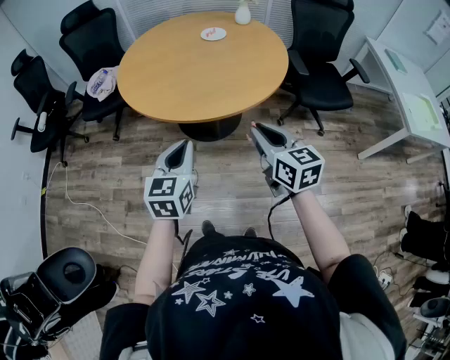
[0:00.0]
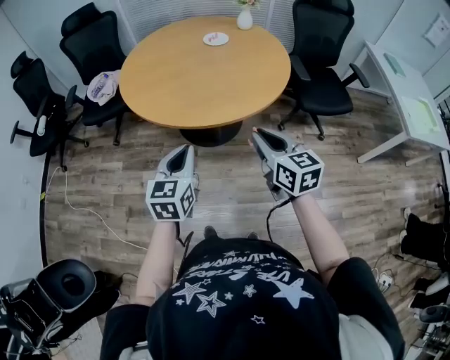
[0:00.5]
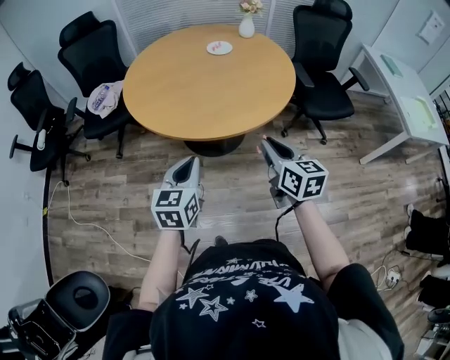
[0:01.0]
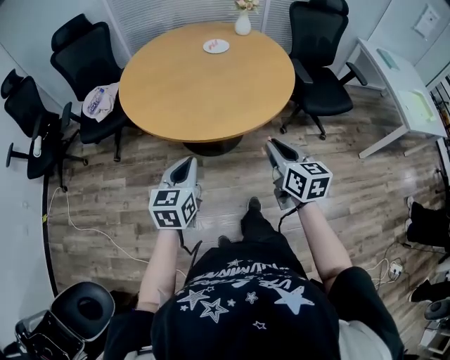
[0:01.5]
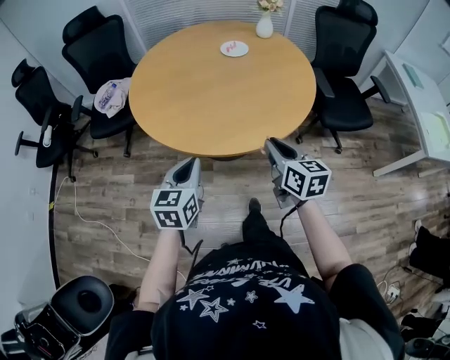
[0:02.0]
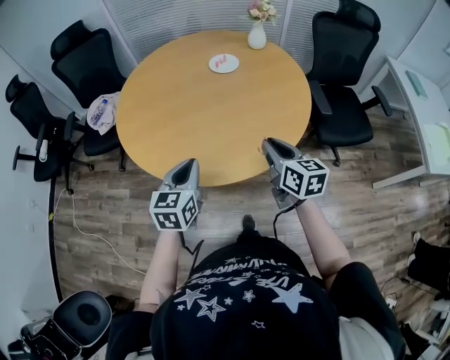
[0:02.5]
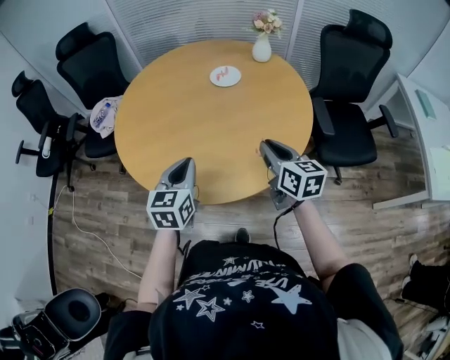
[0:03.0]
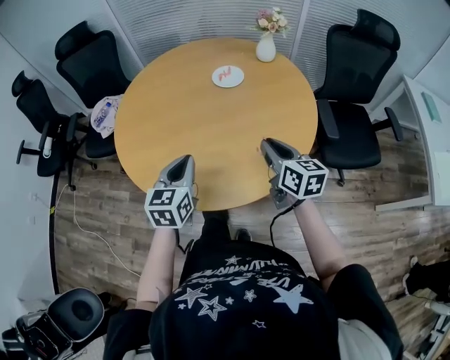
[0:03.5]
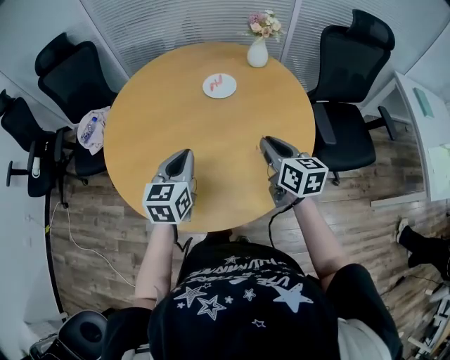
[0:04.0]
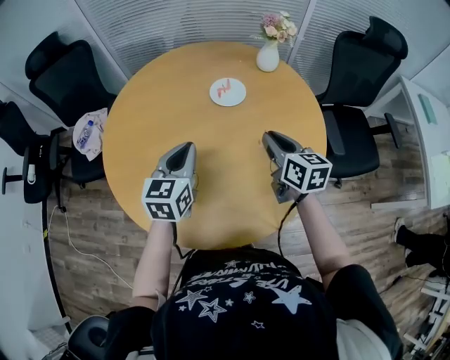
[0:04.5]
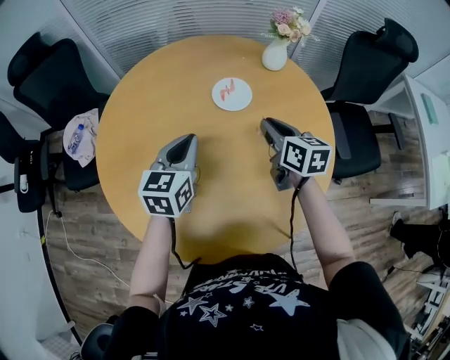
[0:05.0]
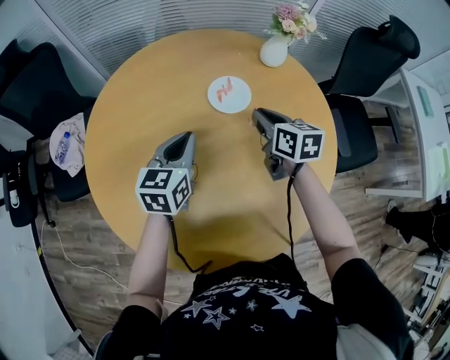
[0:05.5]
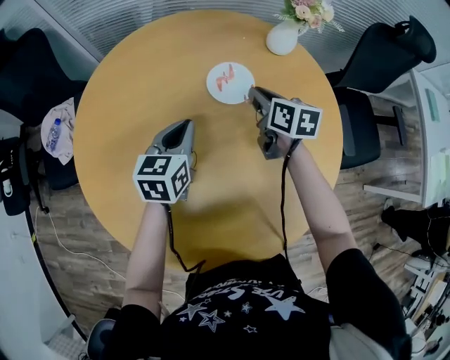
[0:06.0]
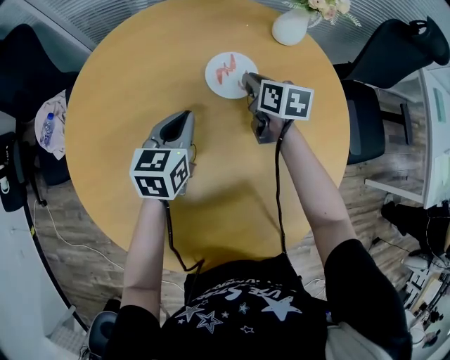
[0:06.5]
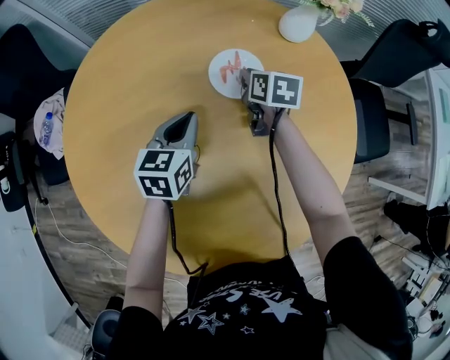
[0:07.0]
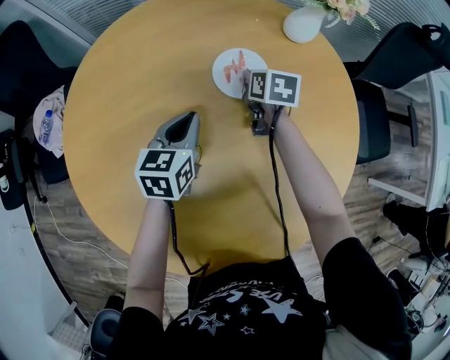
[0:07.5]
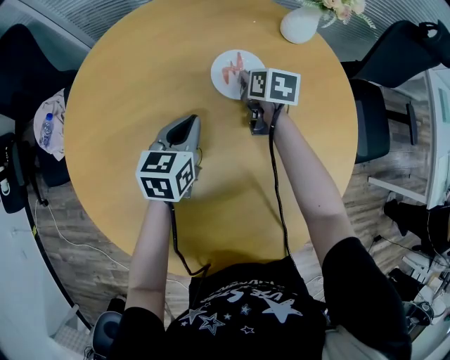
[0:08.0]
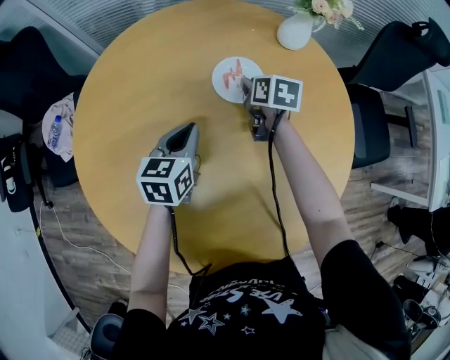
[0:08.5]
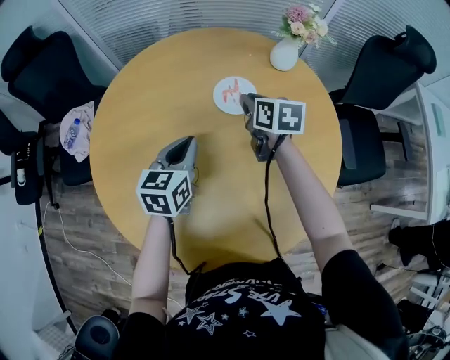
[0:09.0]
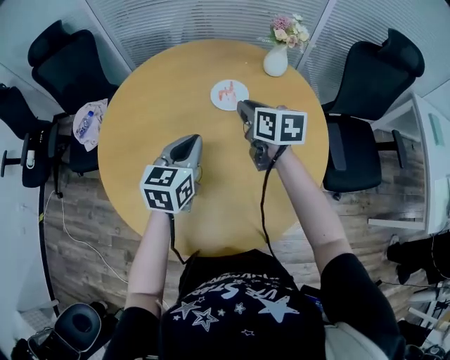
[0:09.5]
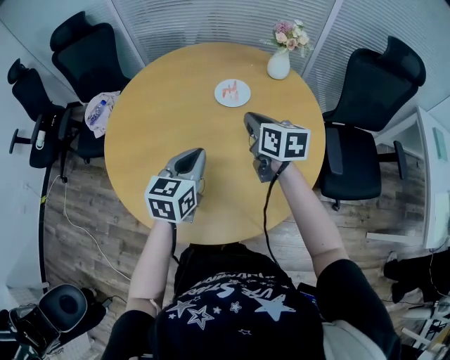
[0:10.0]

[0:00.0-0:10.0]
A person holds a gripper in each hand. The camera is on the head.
0:00.0 to 0:02.0: The left gripper goes some 15 cm forward, to the left and downward, while the right gripper is displaced forward and downward by roughly 15 cm.
0:02.0 to 0:04.0: The grippers both shift forward by approximately 30 cm.
0:04.0 to 0:06.0: The right gripper is displaced forward by about 30 cm; the left gripper shifts some 25 cm forward and downward.
0:06.0 to 0:08.0: The left gripper moves downward, roughly 5 cm. The right gripper shifts roughly 15 cm downward and forward.
0:08.0 to 0:10.0: The two grippers go some 30 cm backward and upward. The right gripper rotates about 30 degrees.

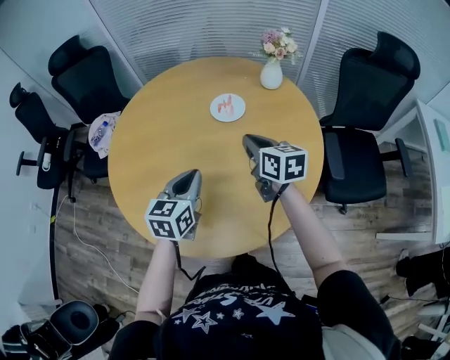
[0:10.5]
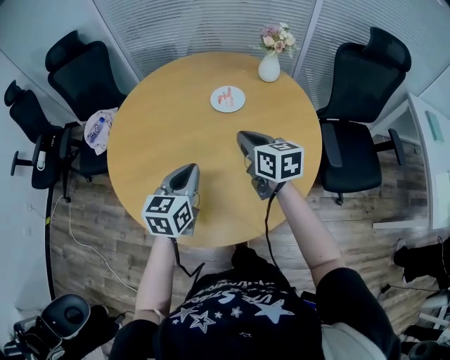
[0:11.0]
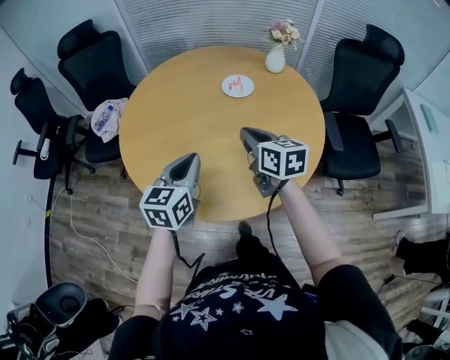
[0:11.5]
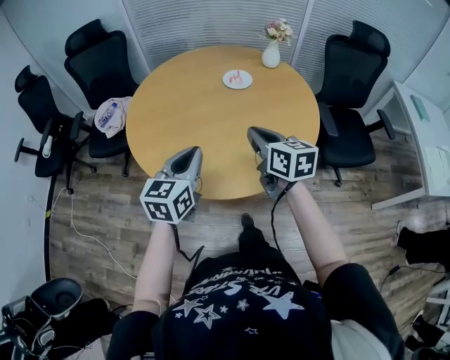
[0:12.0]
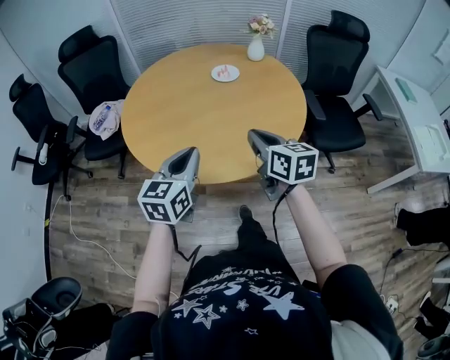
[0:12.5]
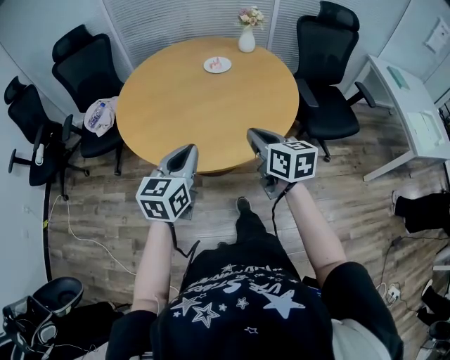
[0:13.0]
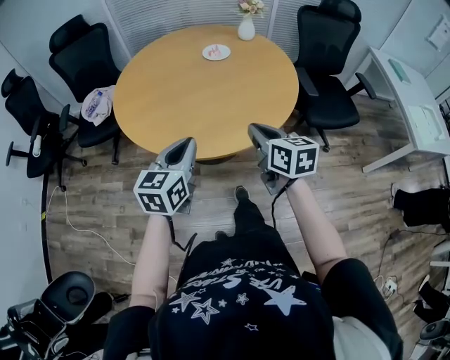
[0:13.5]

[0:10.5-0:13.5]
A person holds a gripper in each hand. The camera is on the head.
0:10.5 to 0:12.0: Both grippers travel together backward and to the left, some 25 cm.
0:12.0 to 0:13.5: The two grippers go some 15 cm backward.

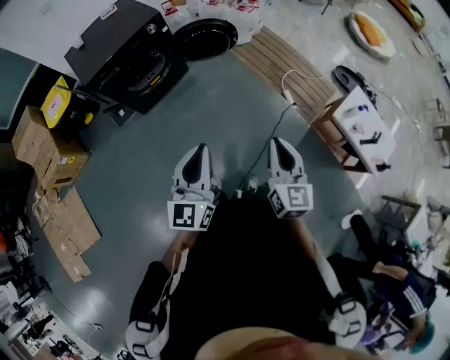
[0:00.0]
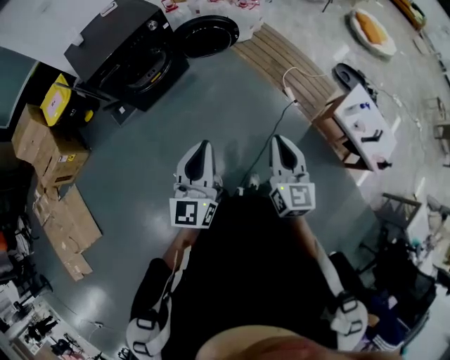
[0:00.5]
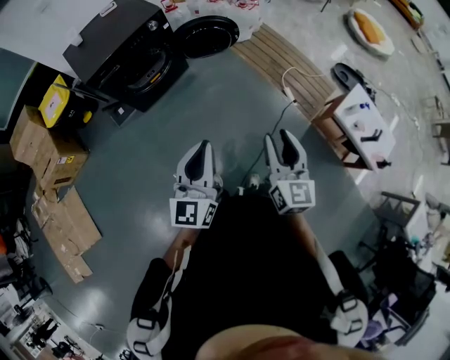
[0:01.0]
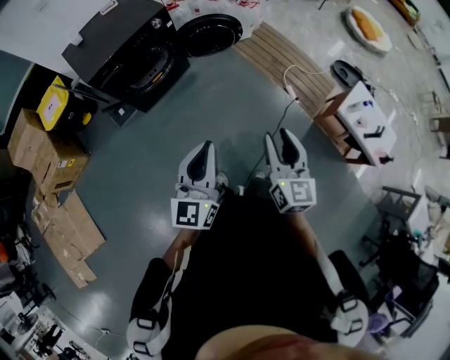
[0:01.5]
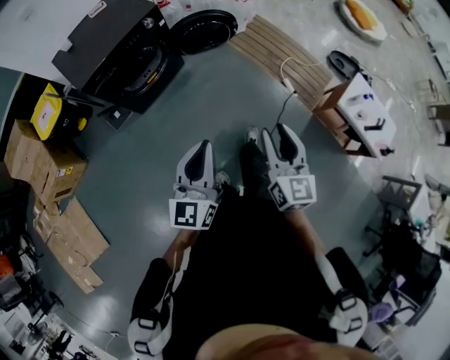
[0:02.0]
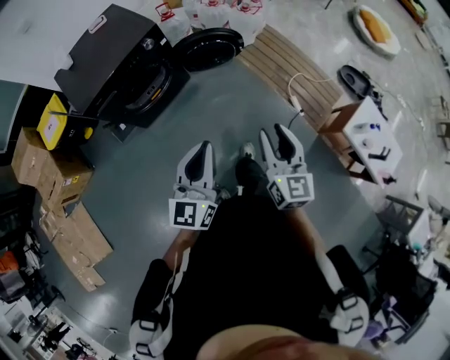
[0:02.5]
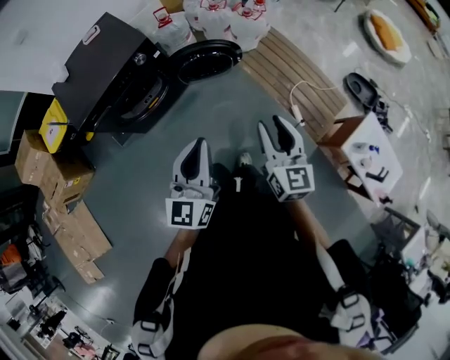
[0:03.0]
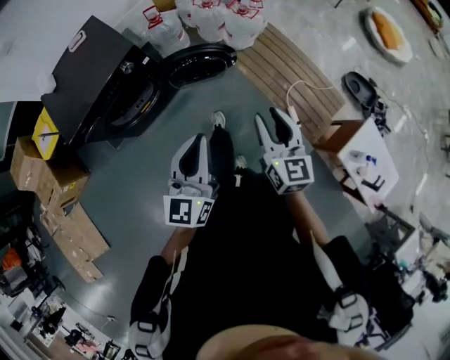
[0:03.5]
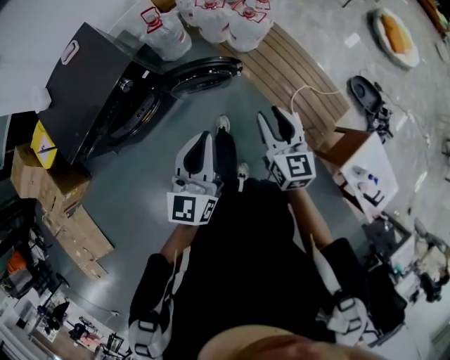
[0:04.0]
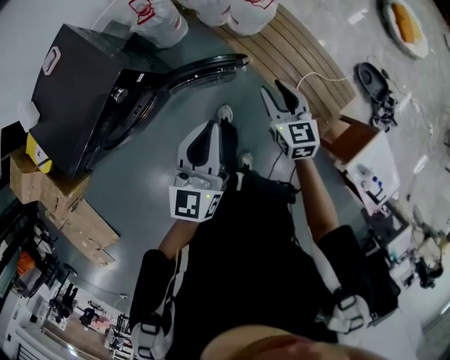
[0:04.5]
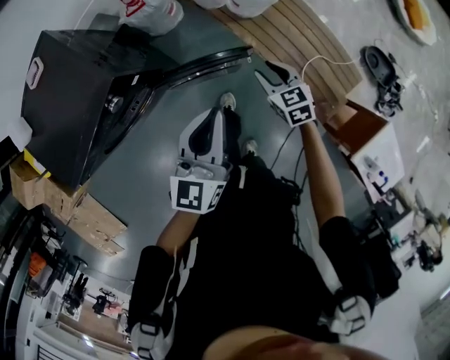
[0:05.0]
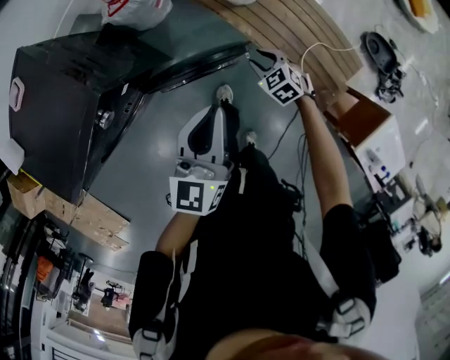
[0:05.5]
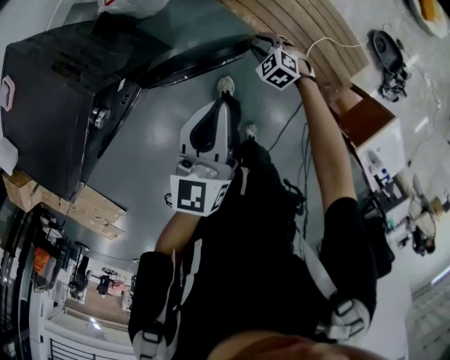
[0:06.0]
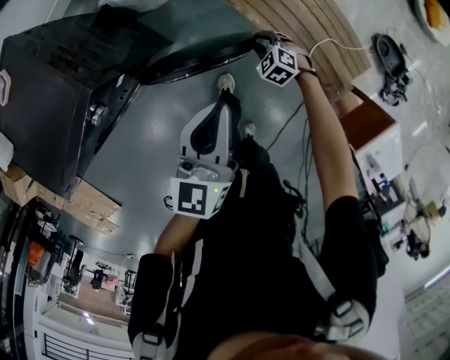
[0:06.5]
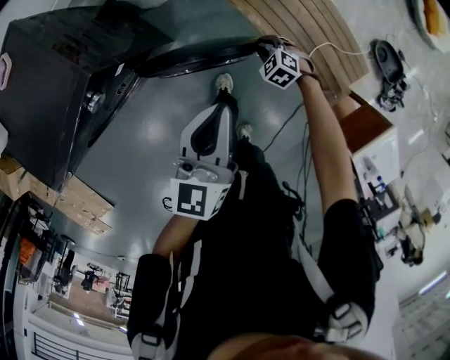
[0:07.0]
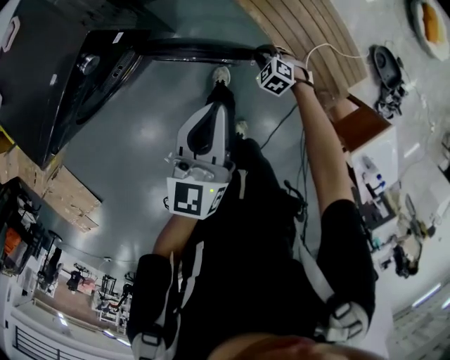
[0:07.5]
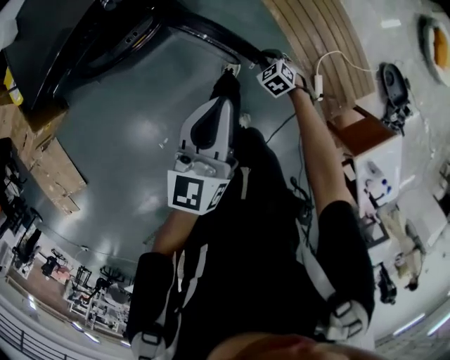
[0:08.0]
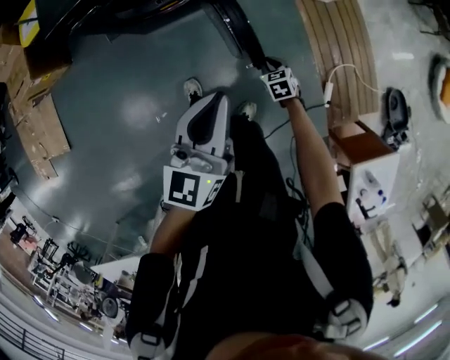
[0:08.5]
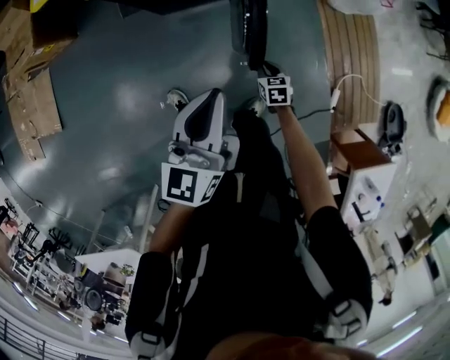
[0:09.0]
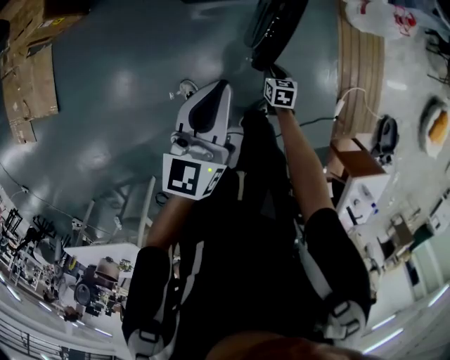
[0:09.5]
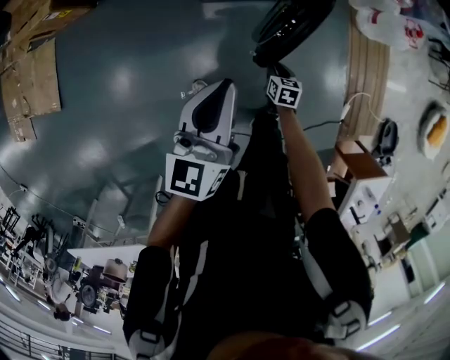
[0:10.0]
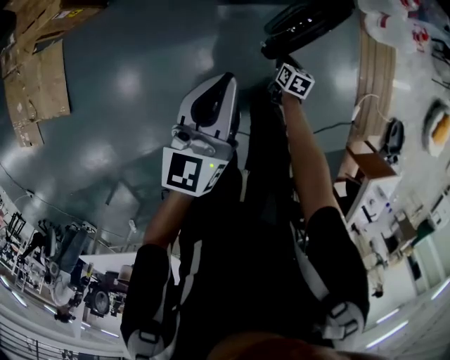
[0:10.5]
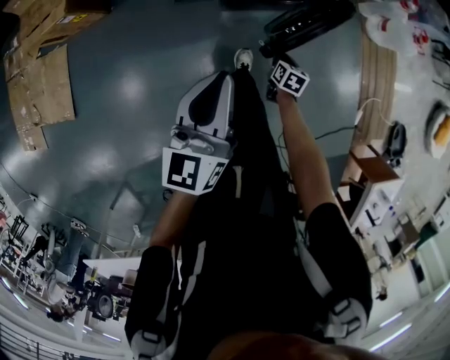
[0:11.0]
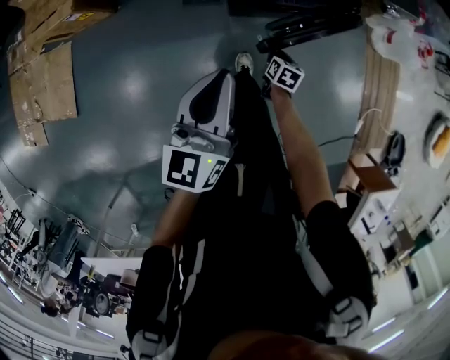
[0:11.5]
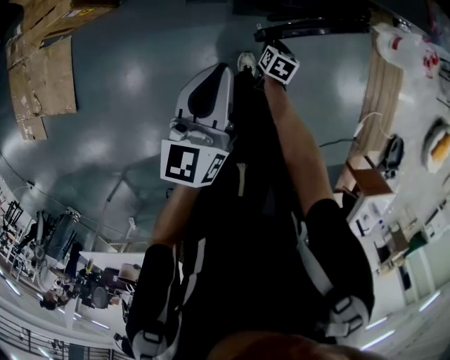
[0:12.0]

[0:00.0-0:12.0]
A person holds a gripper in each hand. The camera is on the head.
0:00.0 to 0:02.0: Both grippers travel together to the left, approximately 10 cm. The right gripper opens its fingers.
0:02.0 to 0:04.0: The two grippers travel together, forward, roughly 50 cm.
0:04.0 to 0:06.0: The right gripper is displaced downward and forward by about 50 cm, and points its fingers some 40 degrees further downward, while the left gripper moves forward and downward, about 30 cm.
0:06.0 to 0:08.0: The two grippers go approximately 25 cm backward.
0:08.0 to 0:10.0: The pair of grippers is taken to the left, roughly 50 cm. The right gripper changes its angle by about 30 degrees, while the left gripper rotates about 30 degrees.
0:10.0 to 0:12.0: Both grippers travel together to the left and forward, roughly 25 cm.

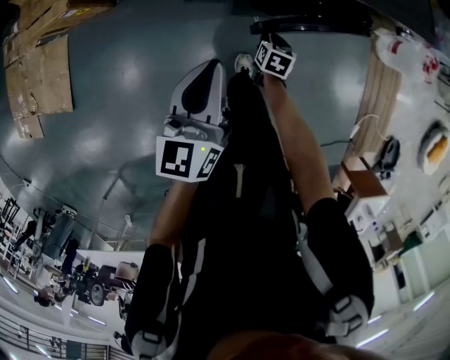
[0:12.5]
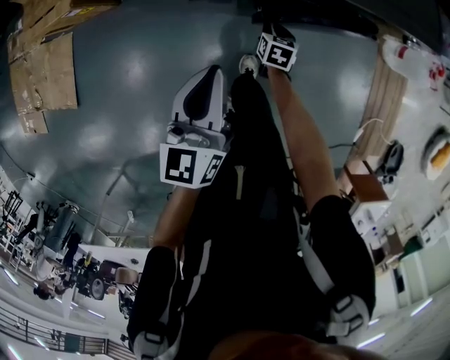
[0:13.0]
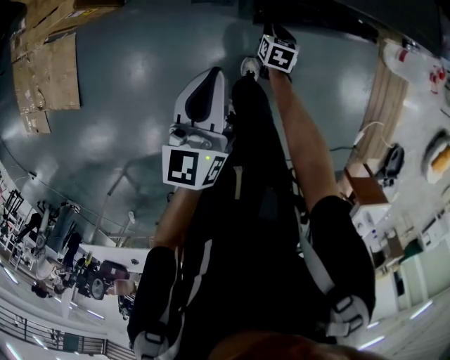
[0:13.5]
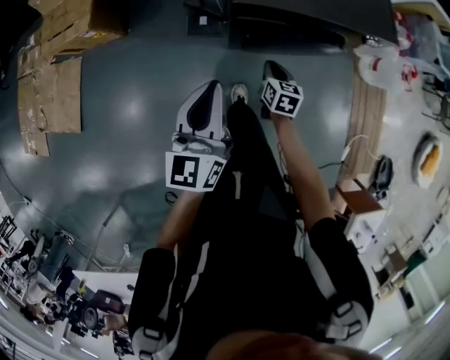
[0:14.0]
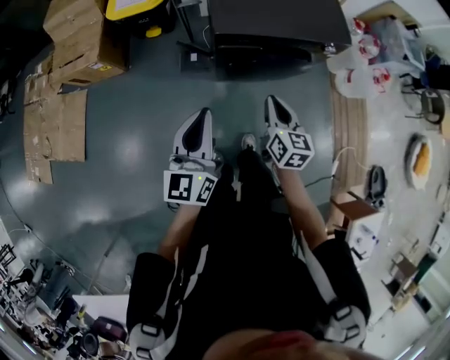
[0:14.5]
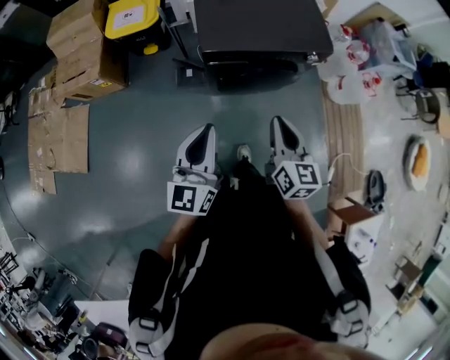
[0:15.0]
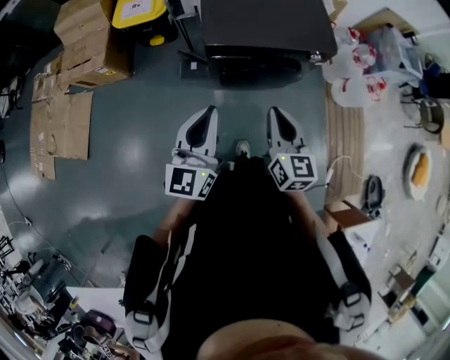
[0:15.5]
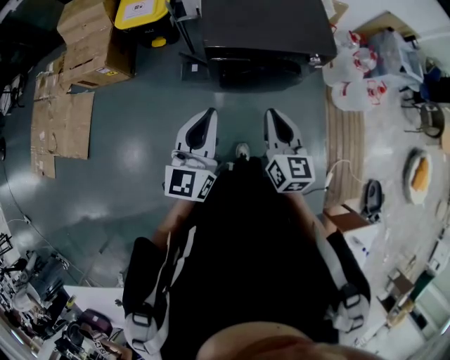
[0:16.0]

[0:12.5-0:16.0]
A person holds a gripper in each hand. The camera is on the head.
0:12.5 to 0:14.5: The right gripper shifts some 40 cm upward, and tilts its fingers roughly 30 degrees upward; the left gripper heads upward and backward, covering some 20 cm.
0:14.5 to 0:16.0: The right gripper goes about 15 cm upward. Meanwhile the left gripper moves to the right and upward, some 10 cm.
